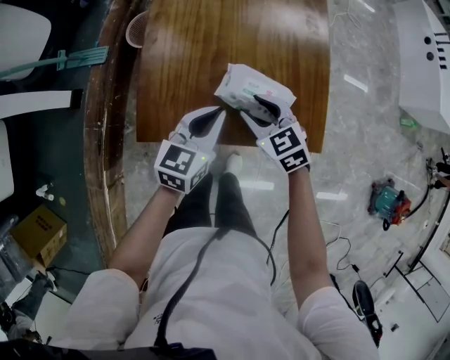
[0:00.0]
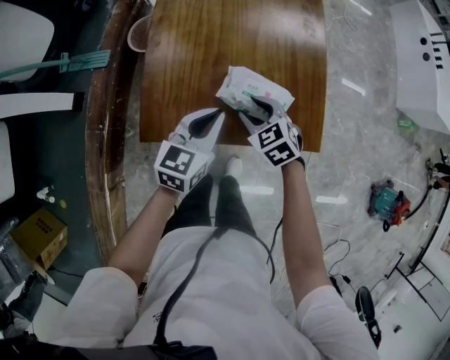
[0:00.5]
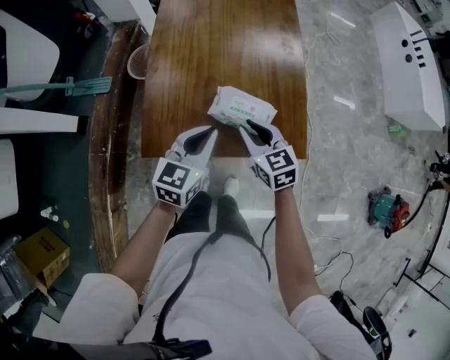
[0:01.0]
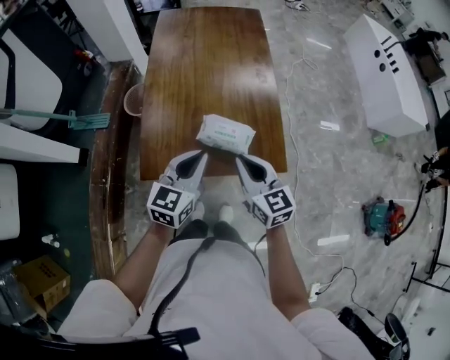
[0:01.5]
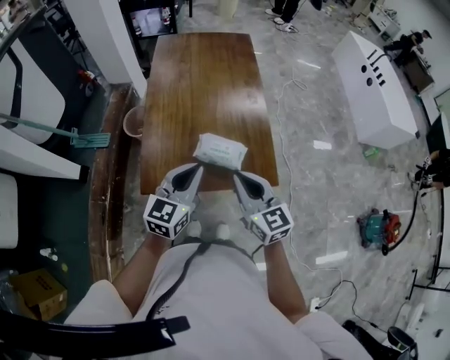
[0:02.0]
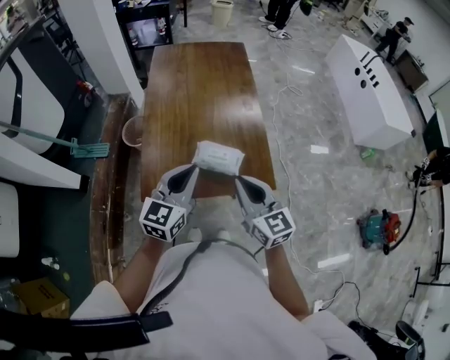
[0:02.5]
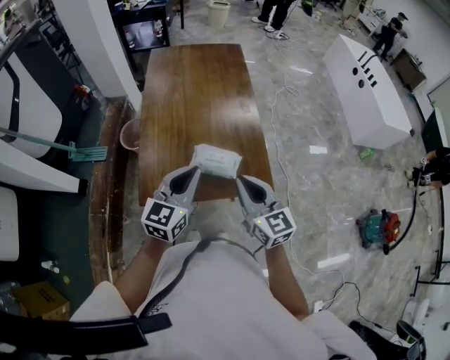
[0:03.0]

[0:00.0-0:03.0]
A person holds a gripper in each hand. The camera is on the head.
0:00.0 to 0:01.5: The grippers both shift upward and backward by approximately 15 cm. The right gripper turns by some 30 degrees, and closes up.
0:01.5 to 0:03.0: The two grippers go roughly 10 cm upward.

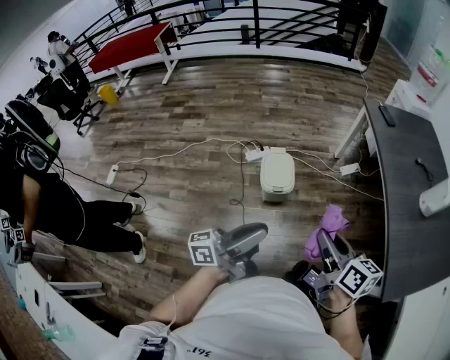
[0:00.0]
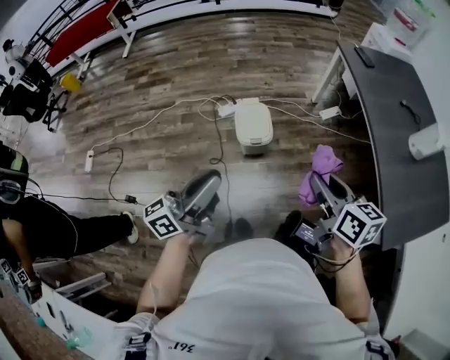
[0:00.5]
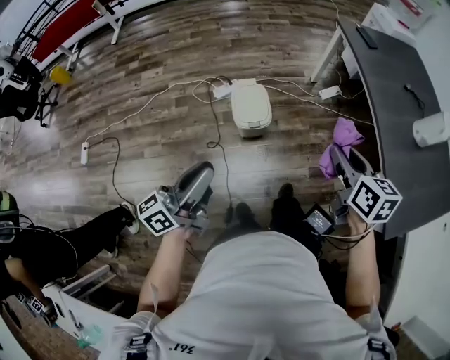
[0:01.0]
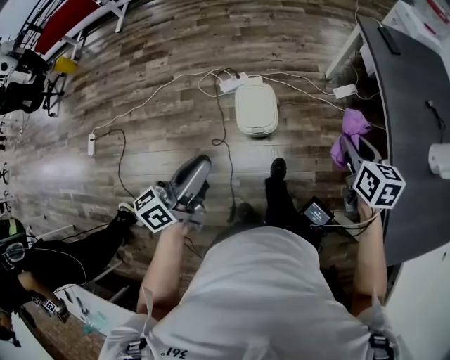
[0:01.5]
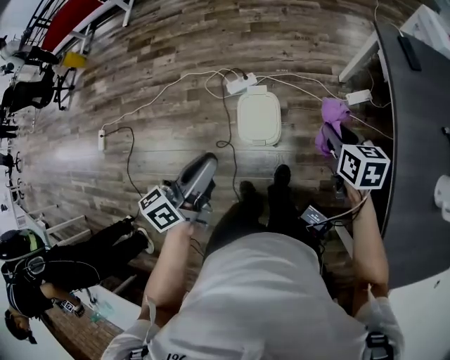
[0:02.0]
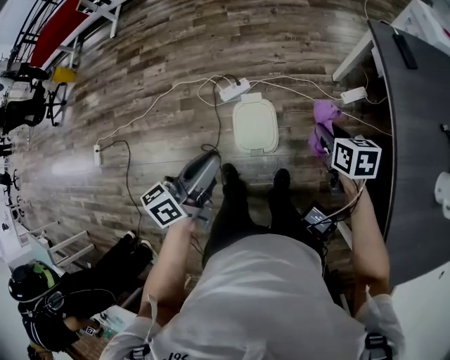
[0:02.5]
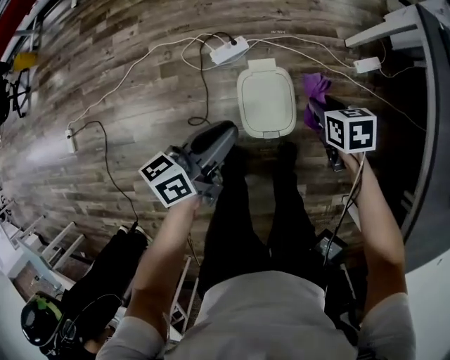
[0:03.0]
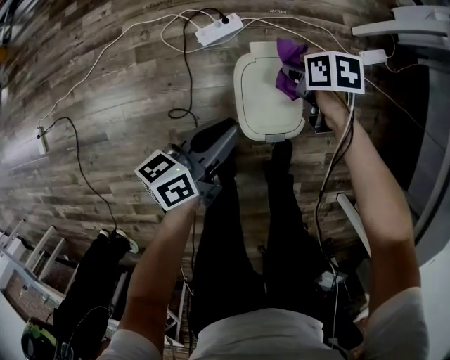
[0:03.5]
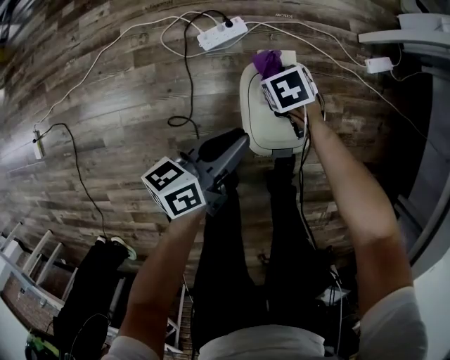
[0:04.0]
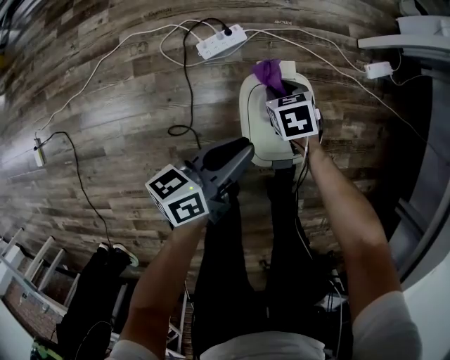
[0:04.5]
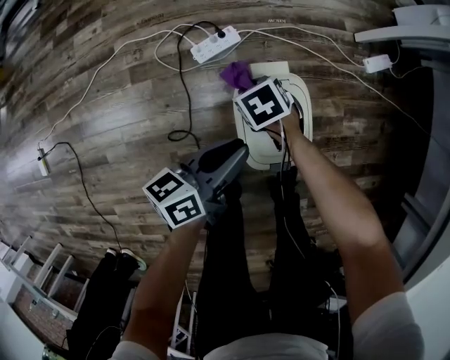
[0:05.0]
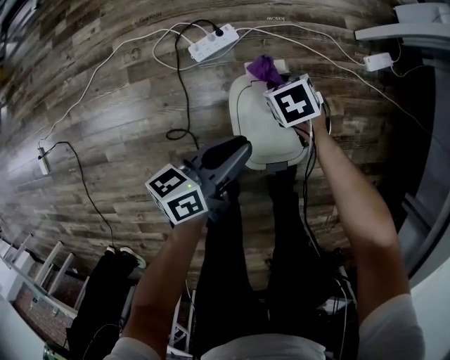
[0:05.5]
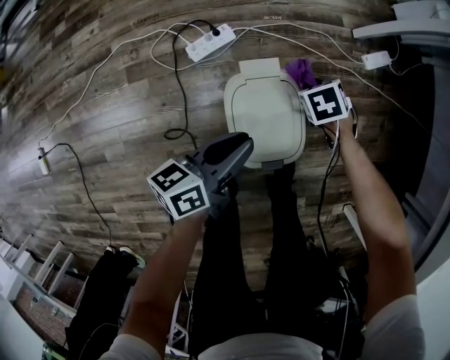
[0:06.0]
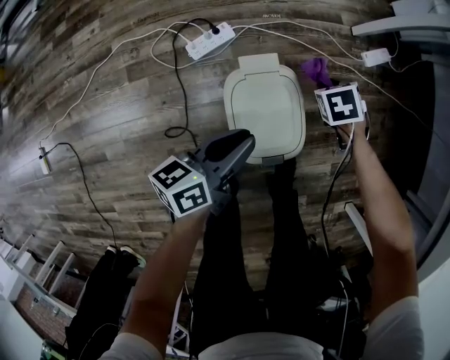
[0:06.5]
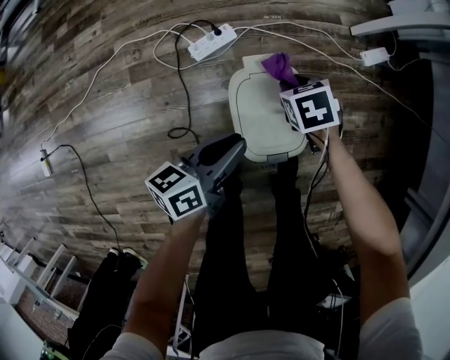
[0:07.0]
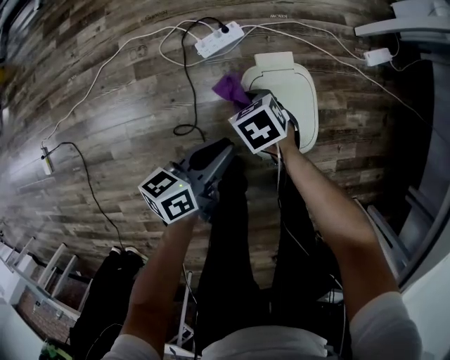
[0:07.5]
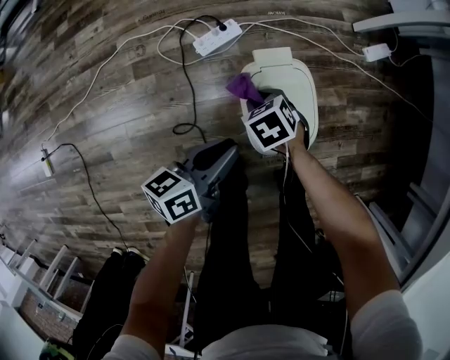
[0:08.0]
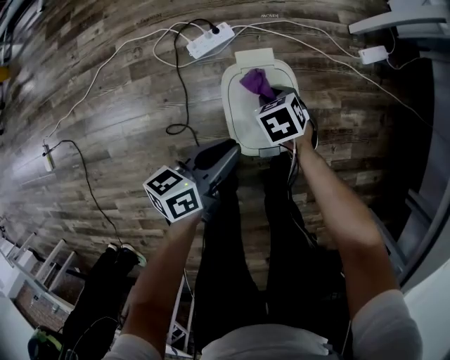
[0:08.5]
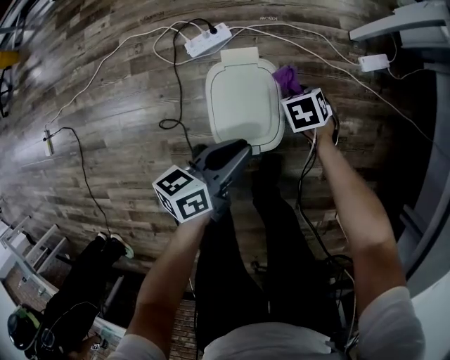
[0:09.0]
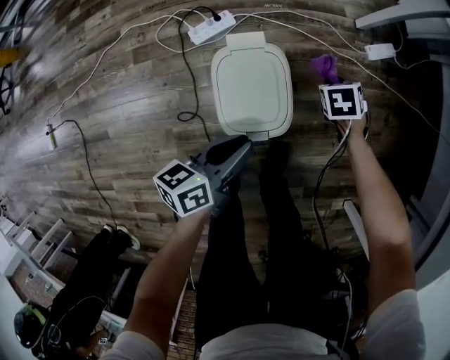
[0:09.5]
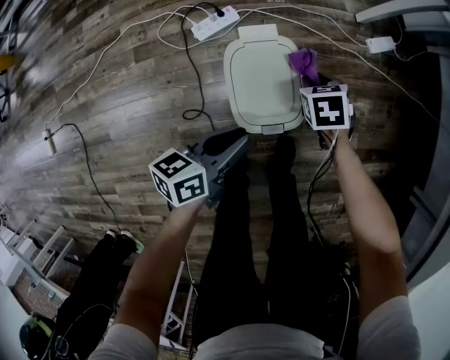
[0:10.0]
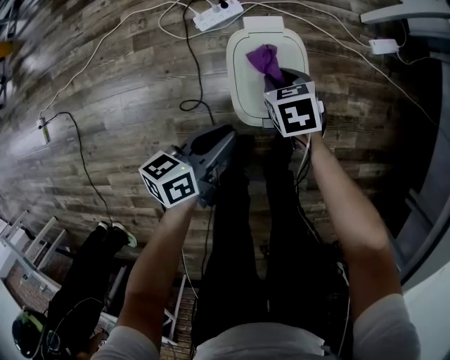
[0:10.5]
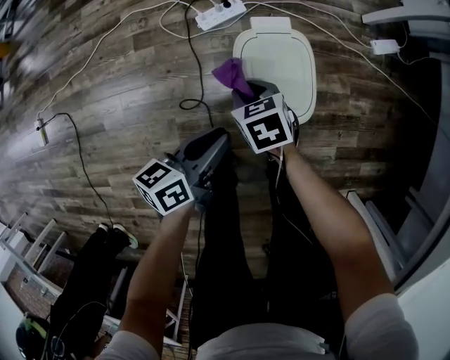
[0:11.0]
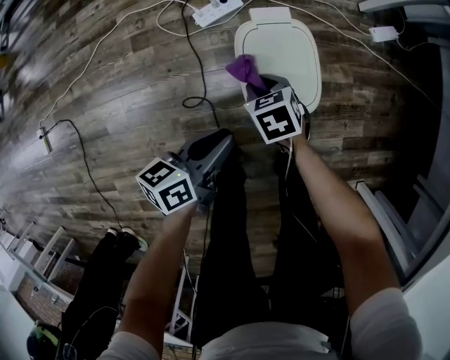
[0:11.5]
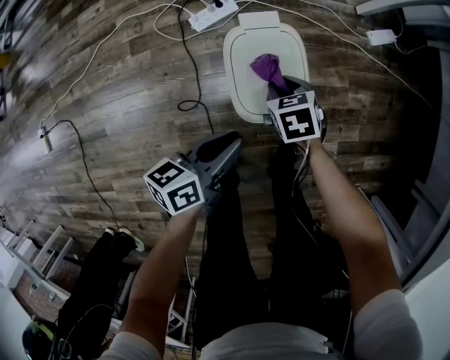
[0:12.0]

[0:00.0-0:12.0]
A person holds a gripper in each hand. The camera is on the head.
0:00.0 to 0:02.0: The left gripper changes place by roughly 30 cm, and changes its angle by approximately 40 degrees.
0:02.0 to 0:04.0: The left gripper shifts about 40 cm downward, and changes its angle by about 20 degrees.
0:04.0 to 0:06.0: The left gripper moves about 5 cm.
0:06.0 to 0:08.0: The left gripper shifts by some 10 cm.

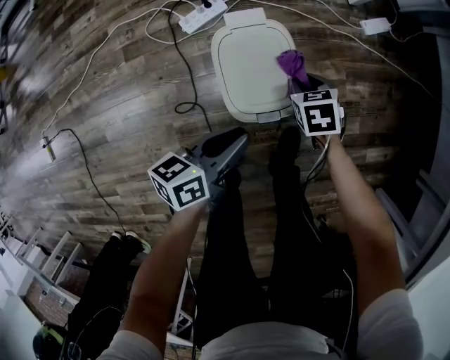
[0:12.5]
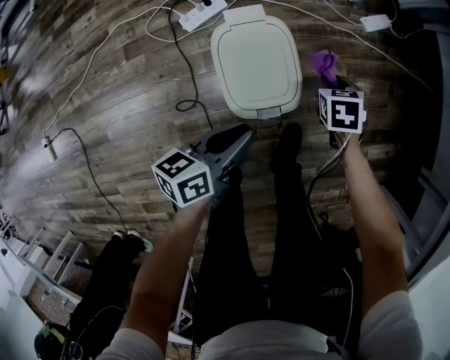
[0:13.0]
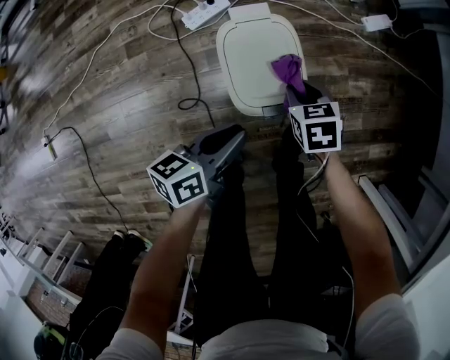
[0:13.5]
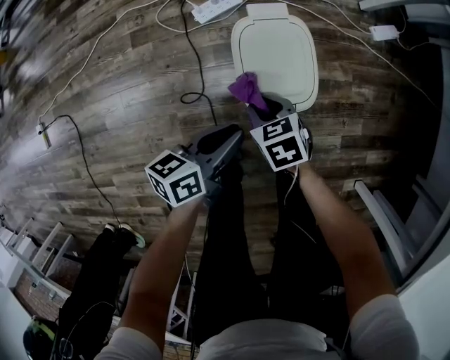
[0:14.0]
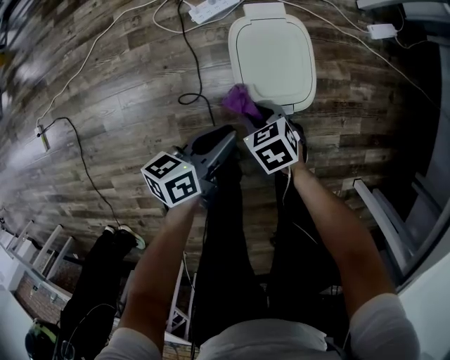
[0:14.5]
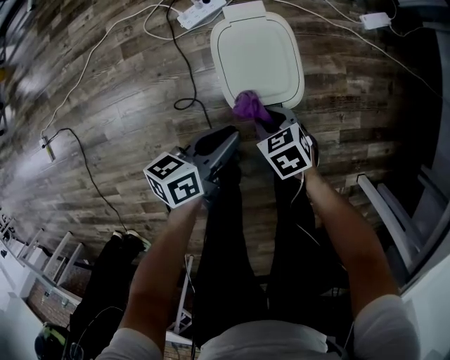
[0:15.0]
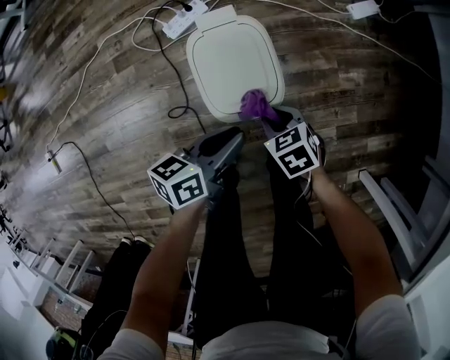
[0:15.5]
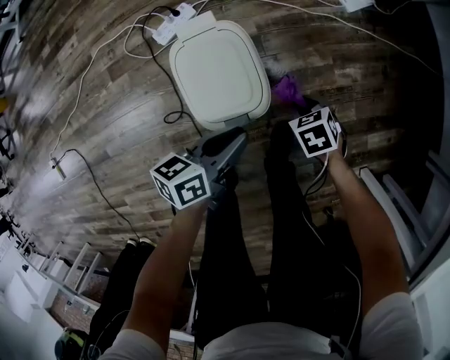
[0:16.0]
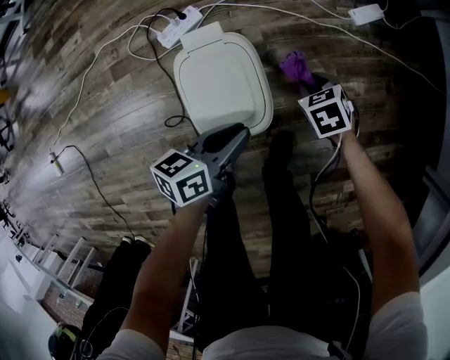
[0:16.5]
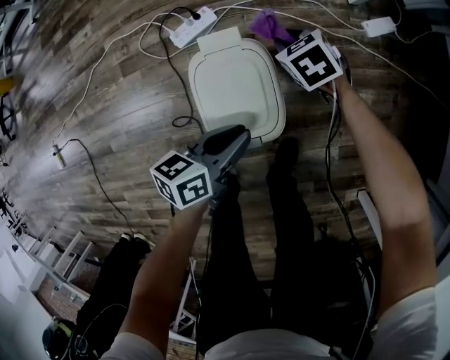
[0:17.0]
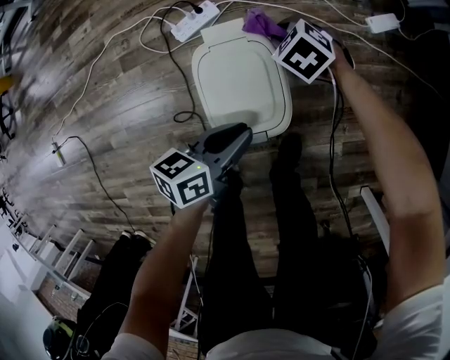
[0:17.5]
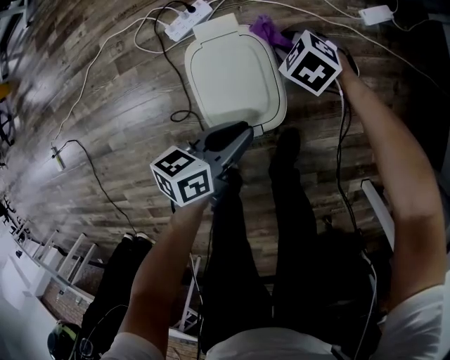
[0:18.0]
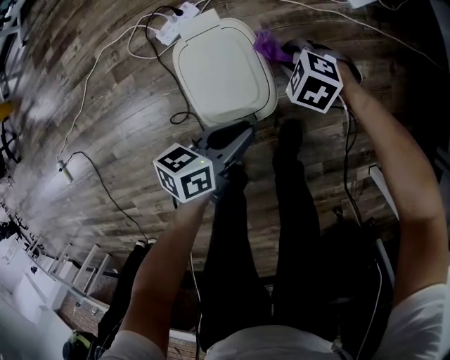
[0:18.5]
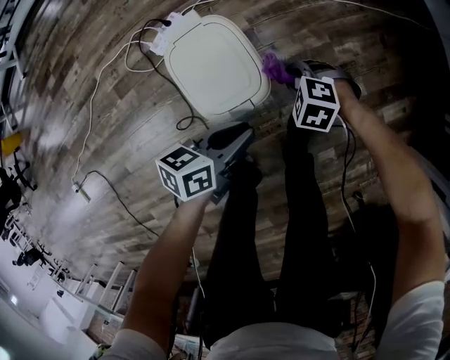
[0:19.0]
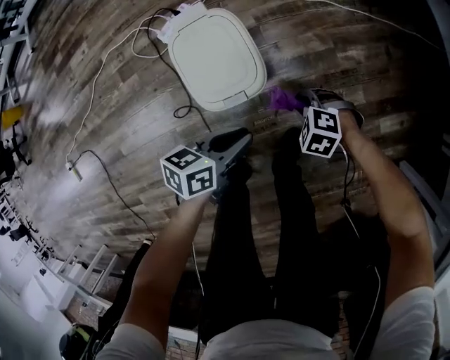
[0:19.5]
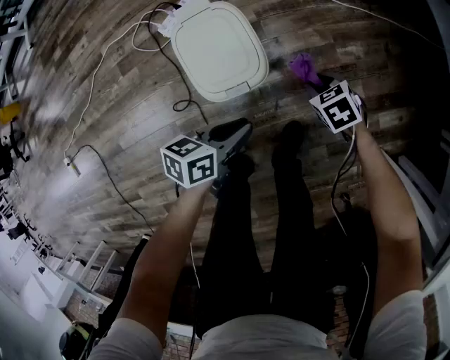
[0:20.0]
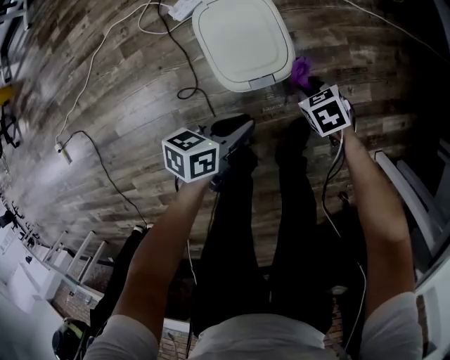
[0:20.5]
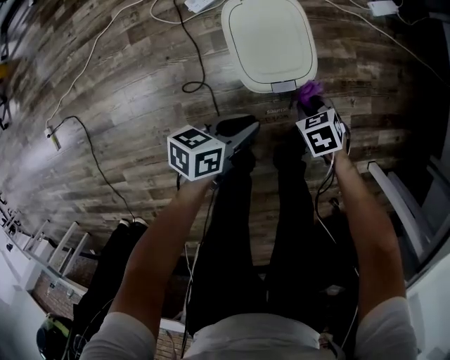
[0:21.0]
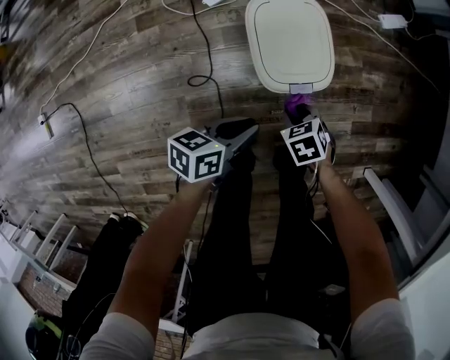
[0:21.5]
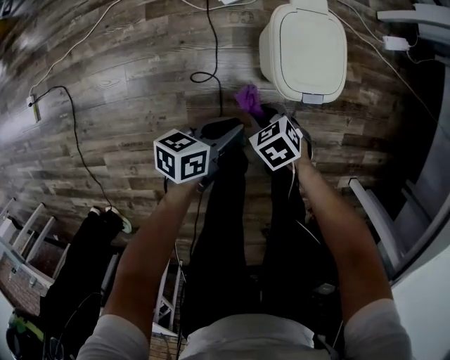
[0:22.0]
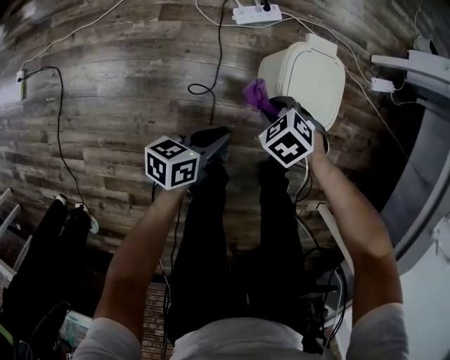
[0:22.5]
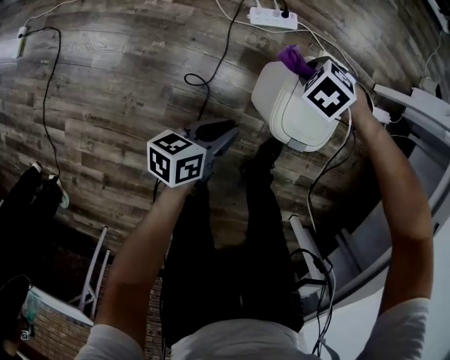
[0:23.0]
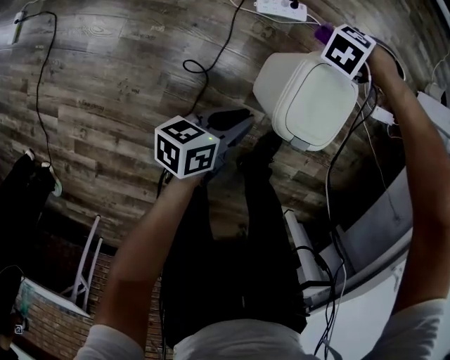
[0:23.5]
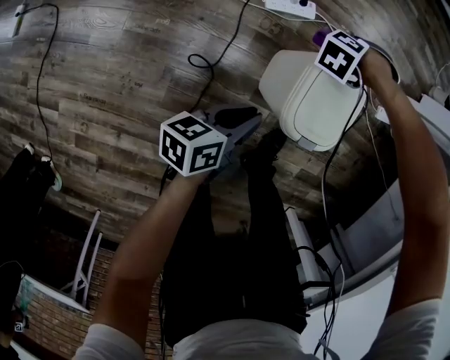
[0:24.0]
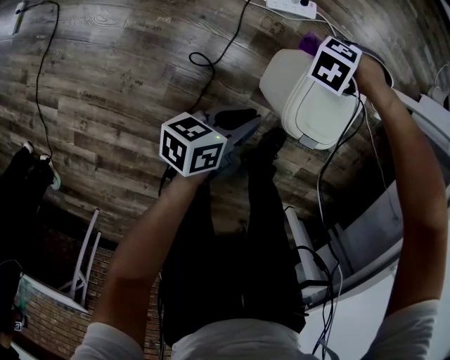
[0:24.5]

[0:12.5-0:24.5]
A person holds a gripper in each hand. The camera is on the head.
0:12.5 to 0:14.5: The left gripper ends up some 5 cm from where it was.
0:14.5 to 0:16.5: The left gripper shifts by about 20 cm.
0:18.5 to 0:20.5: The left gripper shifts by approximately 10 cm.
0:20.5 to 0:22.5: The left gripper moves about 20 cm, and changes its angle by roughly 20 degrees.
0:22.5 to 0:24.5: The left gripper moves about 5 cm.
